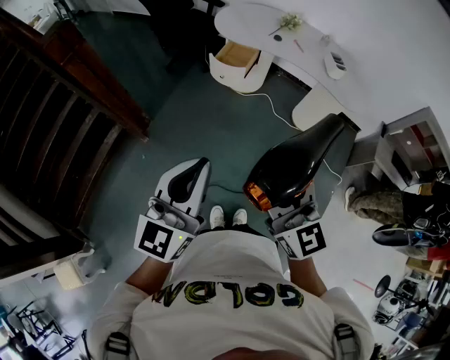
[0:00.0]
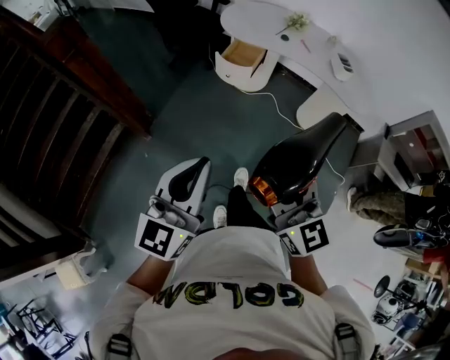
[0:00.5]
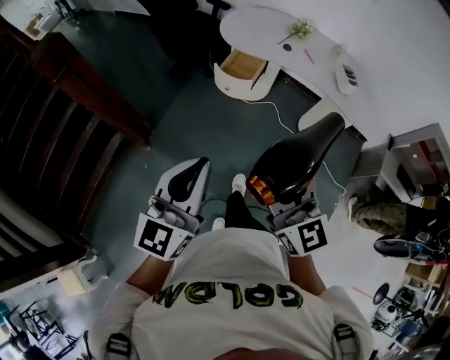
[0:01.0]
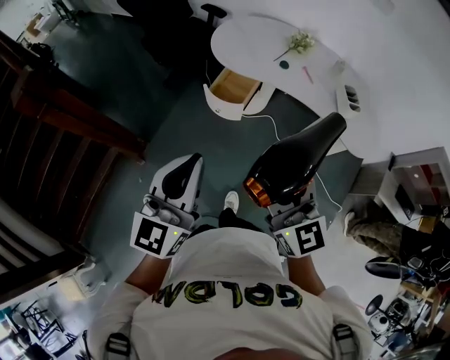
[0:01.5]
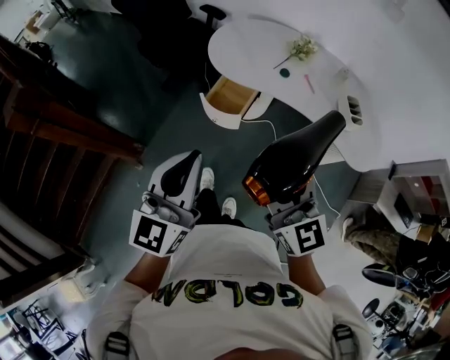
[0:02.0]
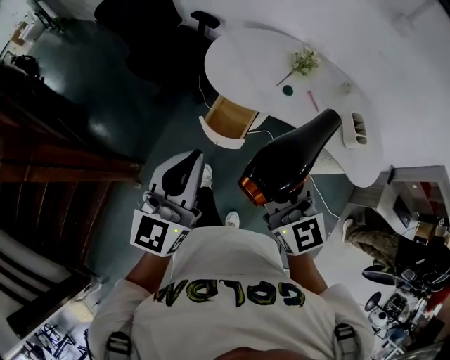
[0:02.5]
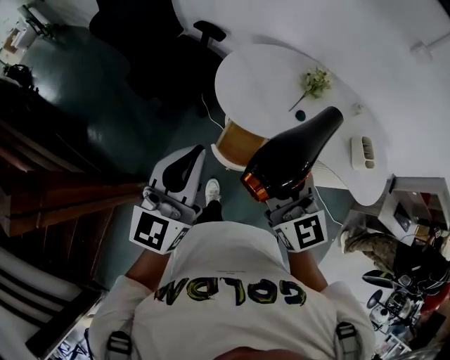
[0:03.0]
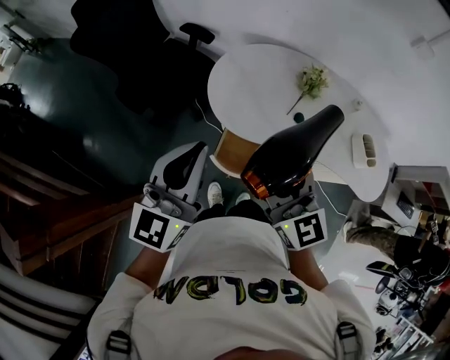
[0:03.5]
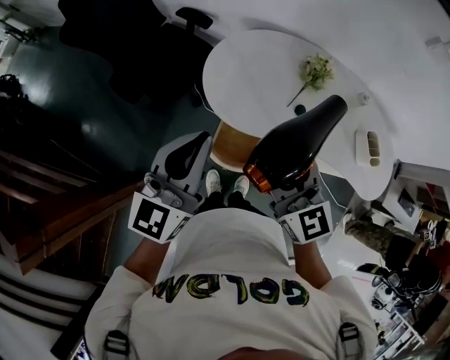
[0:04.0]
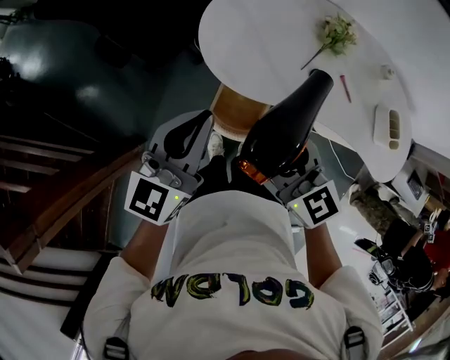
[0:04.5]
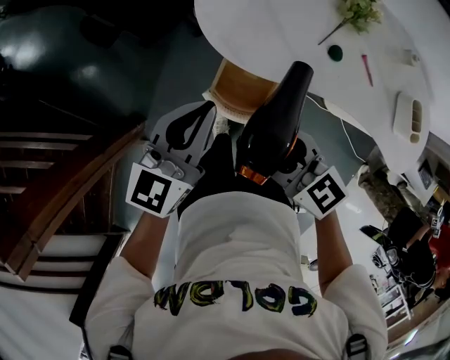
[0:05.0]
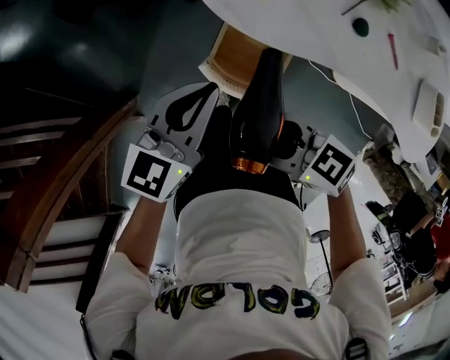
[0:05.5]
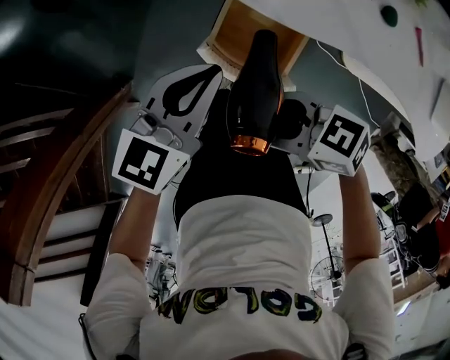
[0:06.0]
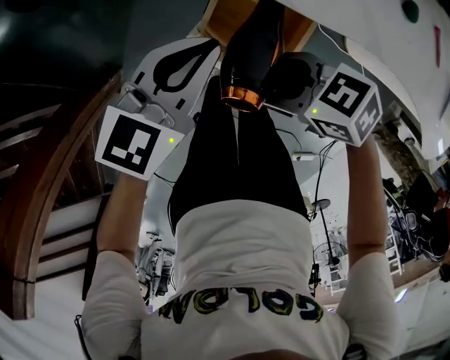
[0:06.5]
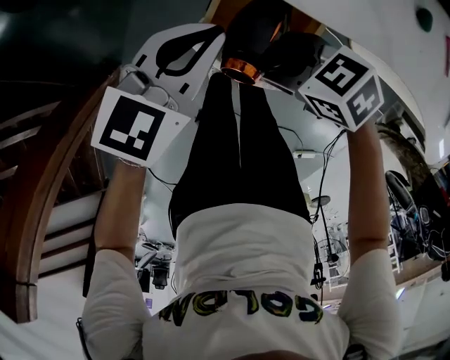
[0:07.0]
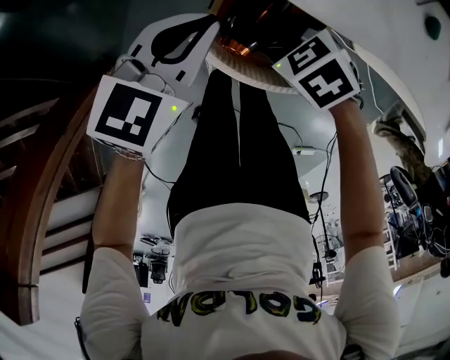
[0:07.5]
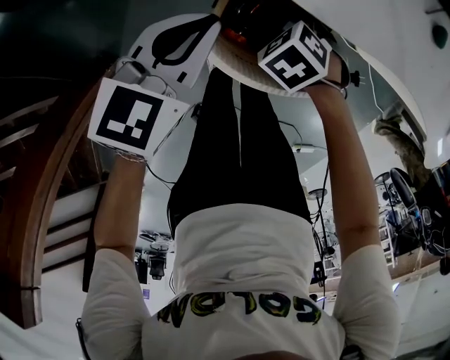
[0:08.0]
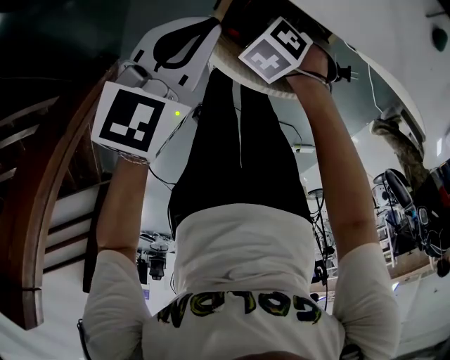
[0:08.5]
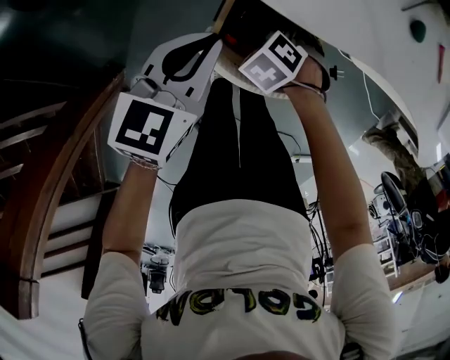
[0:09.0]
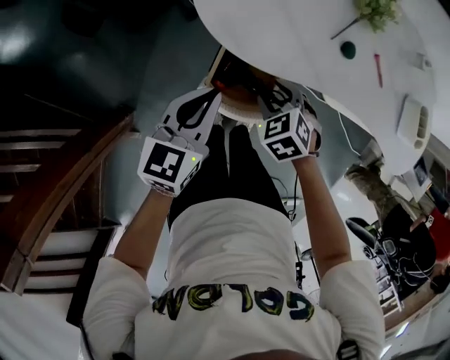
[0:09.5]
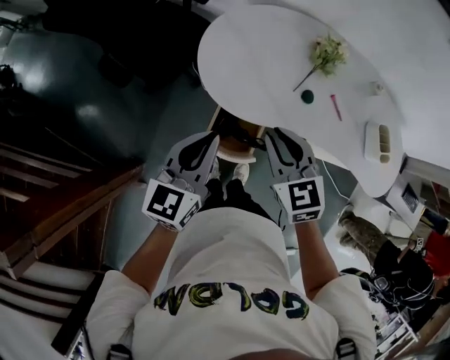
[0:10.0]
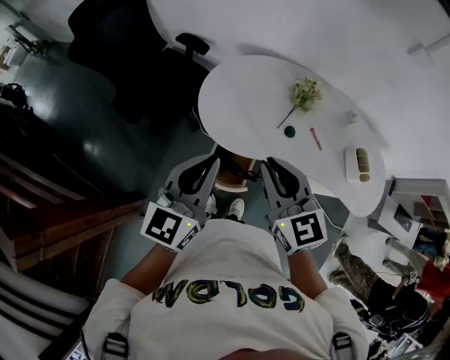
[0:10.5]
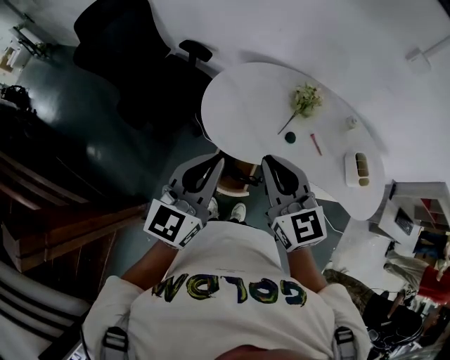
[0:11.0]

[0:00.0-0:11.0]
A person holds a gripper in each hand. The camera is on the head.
0:00.0 to 0:02.0: The grippers both shift forward by approximately 40 cm.
0:02.0 to 0:03.5: Both grippers travel together forward, roughly 40 cm.
0:03.5 to 0:05.5: Both grippers travel together downward, roughly 35 cm. The left gripper swivels approximately 30 degrees, while the right gripper turns by some 60 degrees.
0:05.5 to 0:07.5: The grippers both shift downward by some 20 cm. The right gripper tips its fingers downward by about 40 degrees.
0:07.5 to 0:09.0: The right gripper heads downward, covering approximately 5 cm, and turns by about 20 degrees.
0:09.0 to 0:11.0: Both grippers move upward, roughly 50 cm. The left gripper swivels roughly 30 degrees. Meanwhile the right gripper tips its fingers upward by some 70 degrees, and closes up.

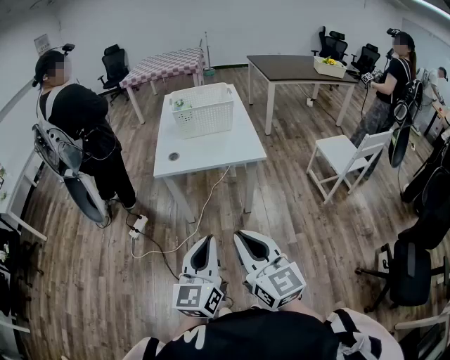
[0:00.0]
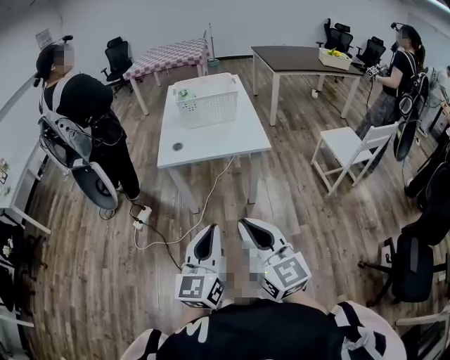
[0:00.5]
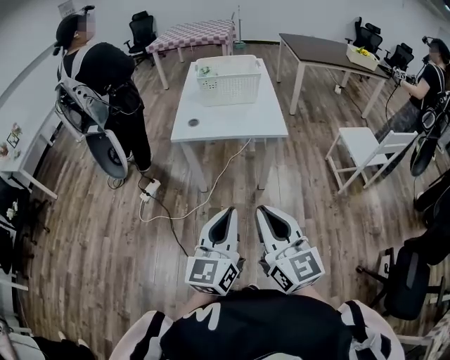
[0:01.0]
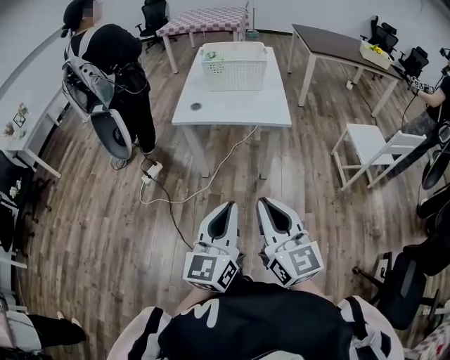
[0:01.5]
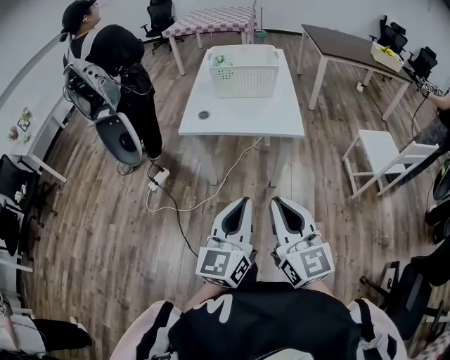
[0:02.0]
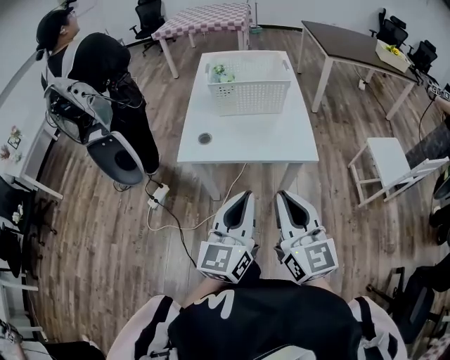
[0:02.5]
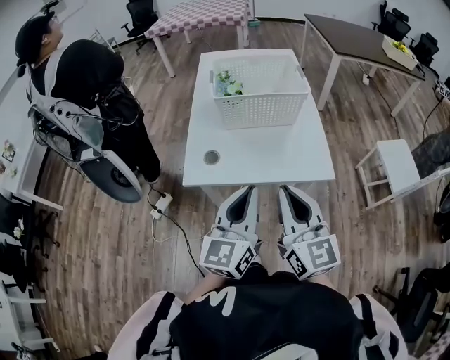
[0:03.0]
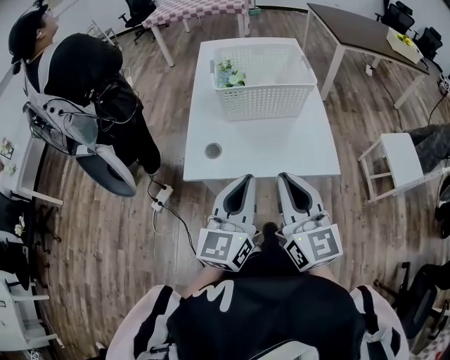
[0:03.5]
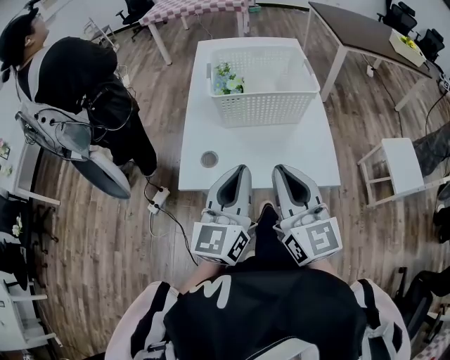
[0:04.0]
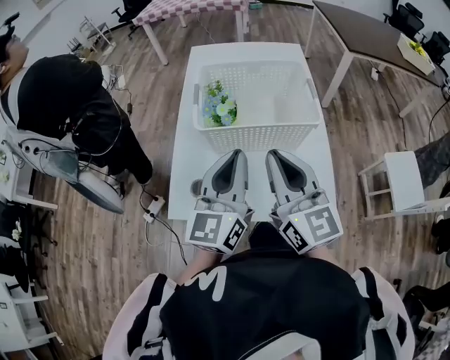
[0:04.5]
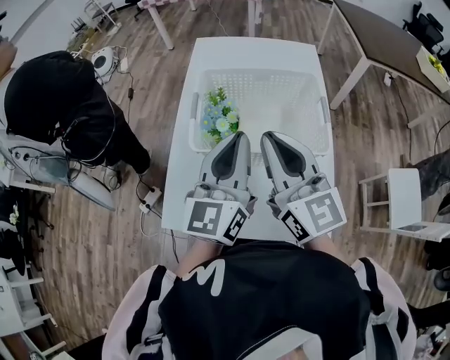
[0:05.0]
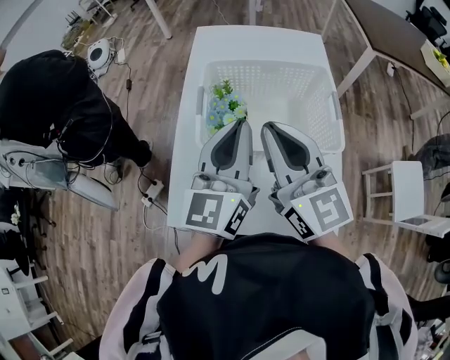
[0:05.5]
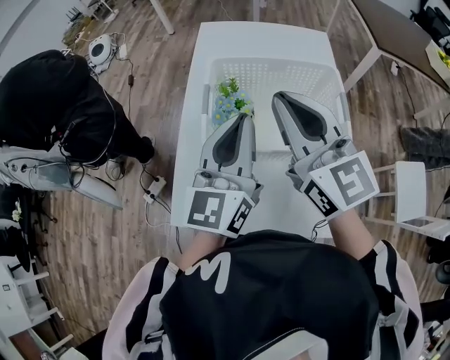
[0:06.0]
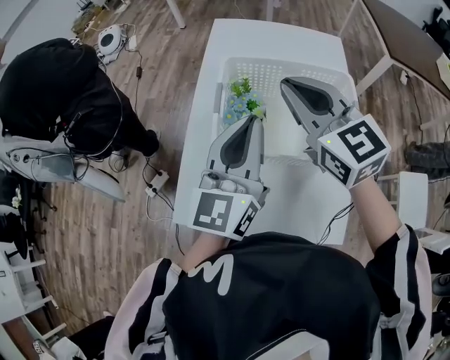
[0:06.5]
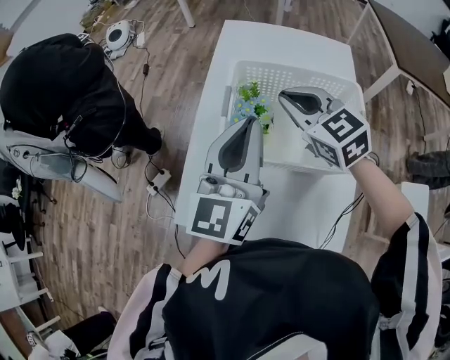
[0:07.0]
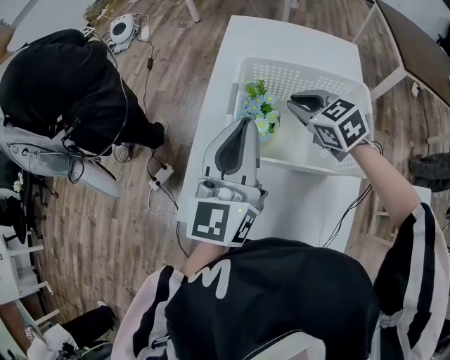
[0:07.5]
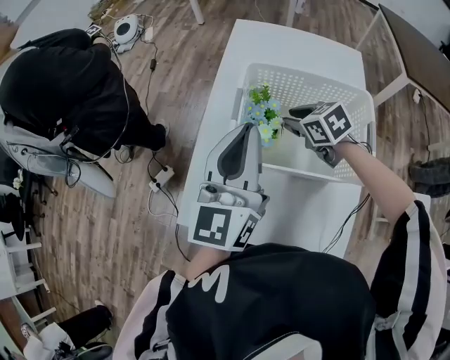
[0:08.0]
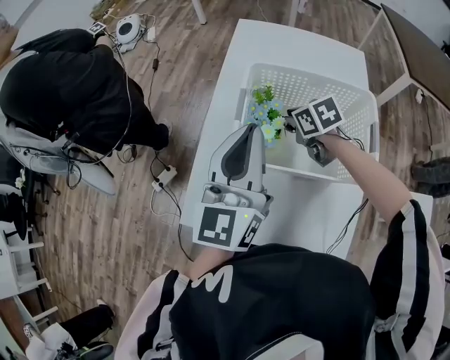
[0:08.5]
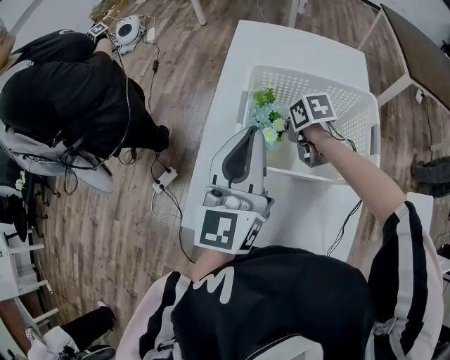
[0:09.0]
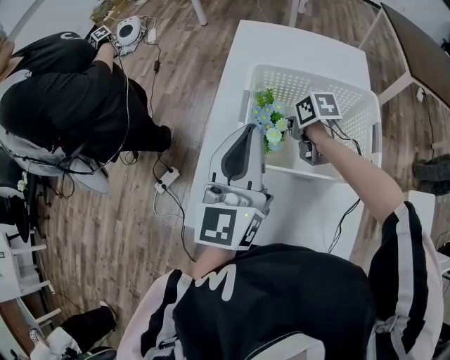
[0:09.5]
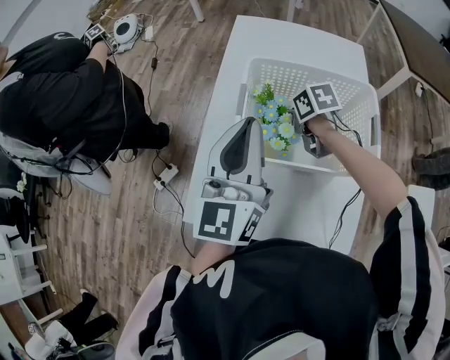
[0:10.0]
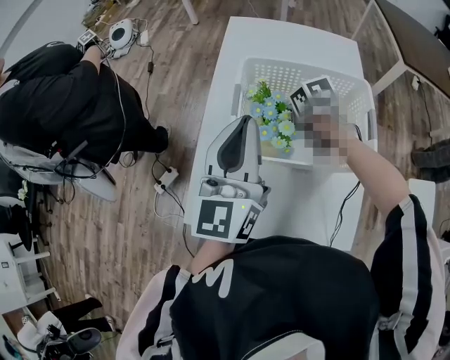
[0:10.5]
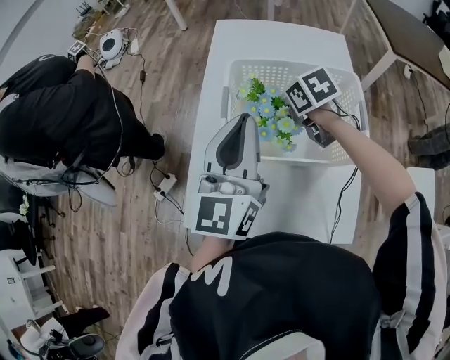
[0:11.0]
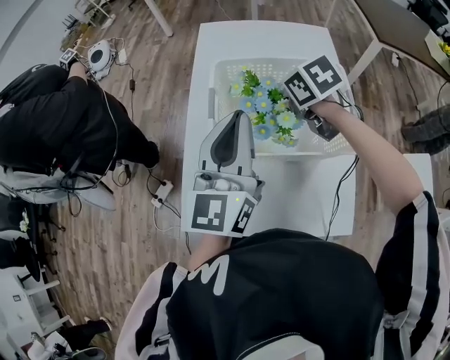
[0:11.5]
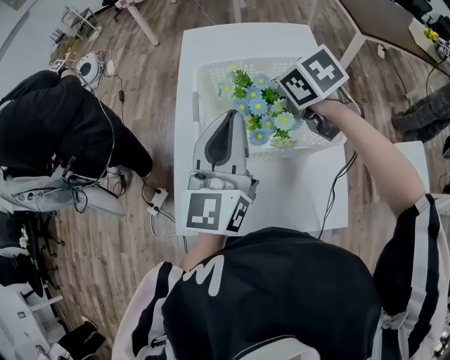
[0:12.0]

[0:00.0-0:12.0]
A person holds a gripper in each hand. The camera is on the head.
0:00.0 to 0:02.0: Both grippers move to the right and forward, approximately 10 cm.
0:02.0 to 0:04.0: The grippers both shift forward by some 35 cm.
0:04.0 to 0:06.0: Both grippers travel together forward, some 30 cm.
0:06.0 to 0:08.0: The right gripper travels downward and forward by roughly 25 cm, tips its fingers downward by roughly 50 degrees, and opens. The left gripper moves approximately 5 cm.
0:08.0 to 0:10.0: The right gripper swivels some 30 degrees.
0:10.0 to 0:12.0: The right gripper shifts roughly 15 cm upward. The left gripper moves approximately 5 cm.

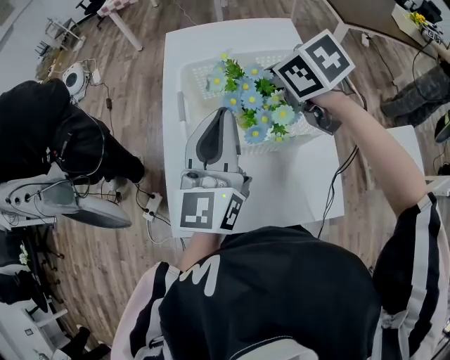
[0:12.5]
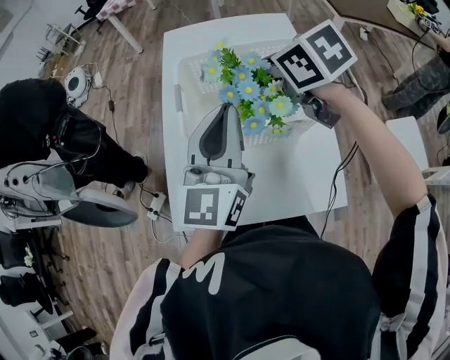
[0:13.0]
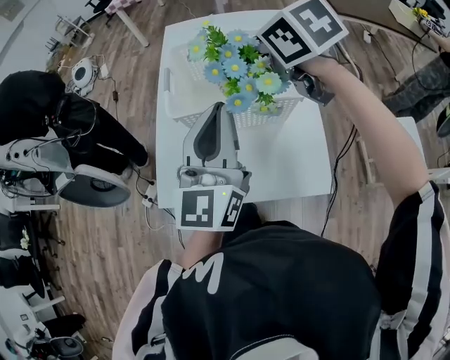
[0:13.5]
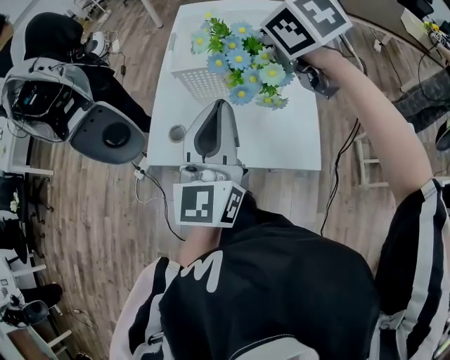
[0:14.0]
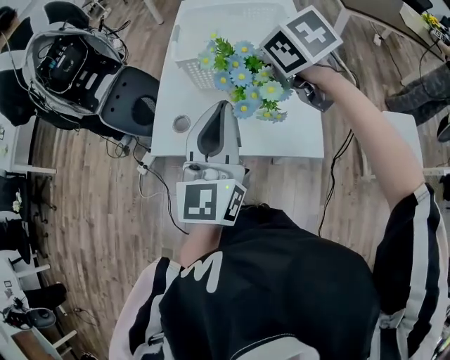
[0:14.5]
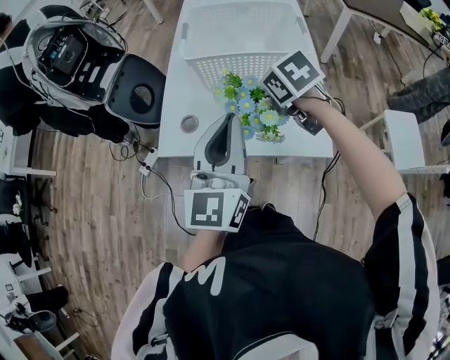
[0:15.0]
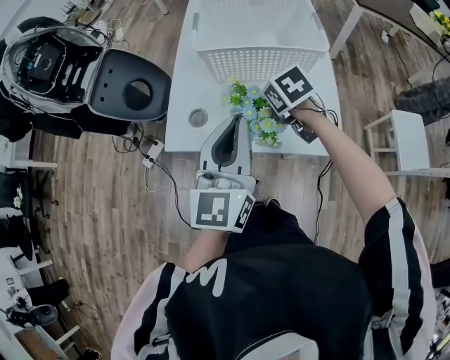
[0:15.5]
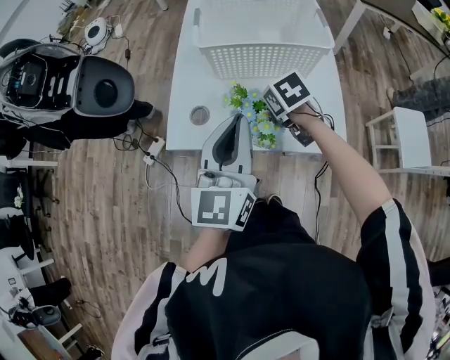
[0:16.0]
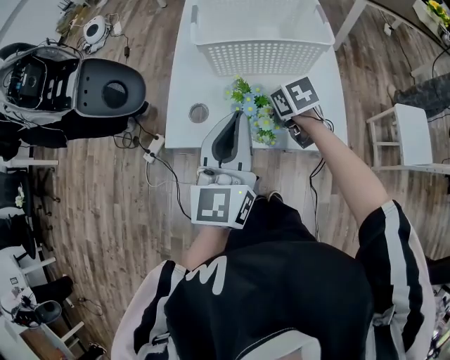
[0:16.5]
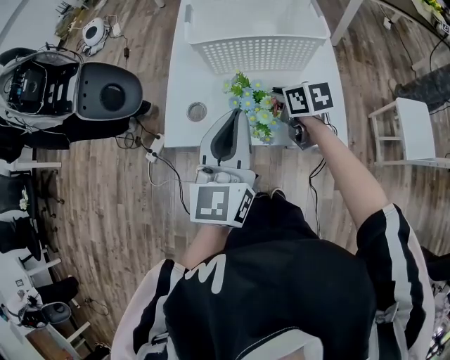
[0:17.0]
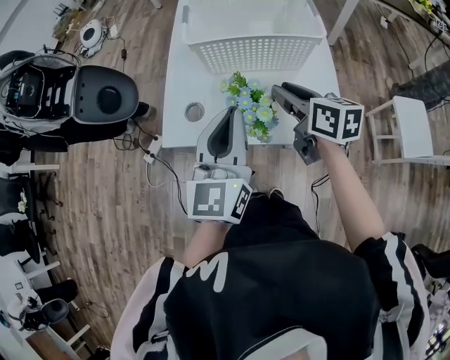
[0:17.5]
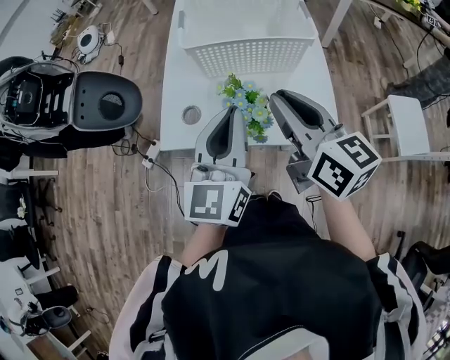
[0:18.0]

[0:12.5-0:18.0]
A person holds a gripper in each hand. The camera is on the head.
0:12.5 to 0:14.5: The two grippers go approximately 20 cm backward.
0:14.5 to 0:16.0: The left gripper moves downward and to the left, some 10 cm; the right gripper goes roughly 25 cm downward.
0:16.0 to 0:18.0: The right gripper shifts roughly 25 cm upward, and angles its fingers upward, by some 50 degrees.
